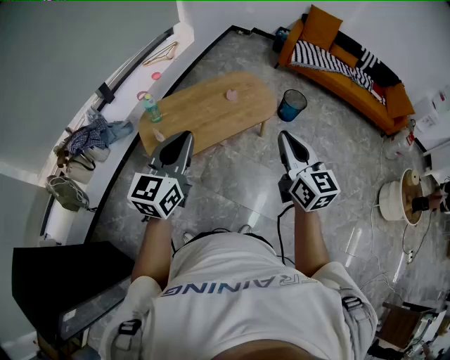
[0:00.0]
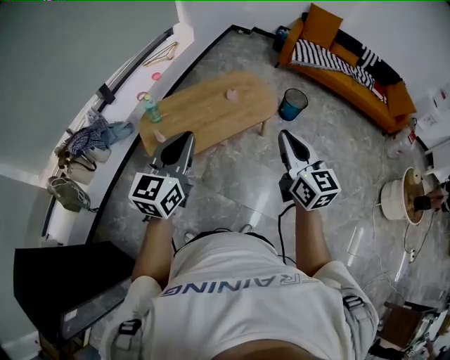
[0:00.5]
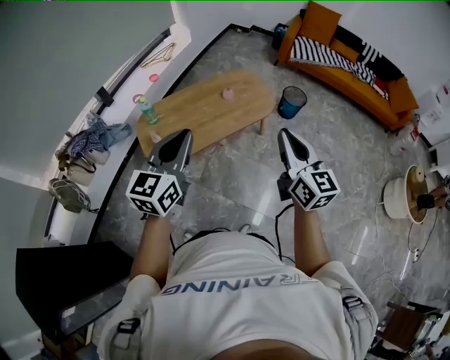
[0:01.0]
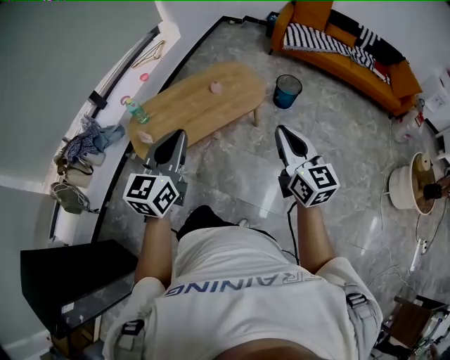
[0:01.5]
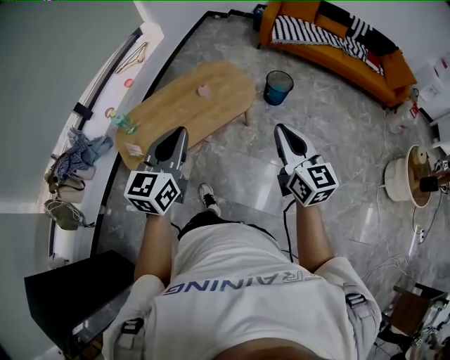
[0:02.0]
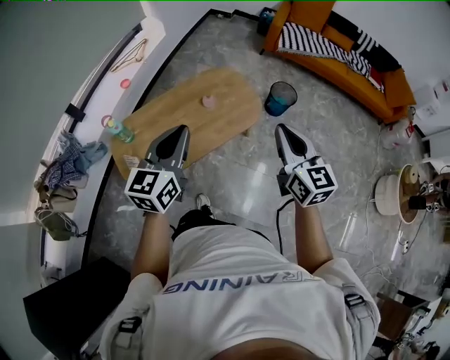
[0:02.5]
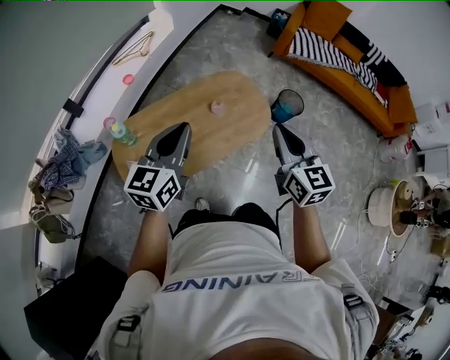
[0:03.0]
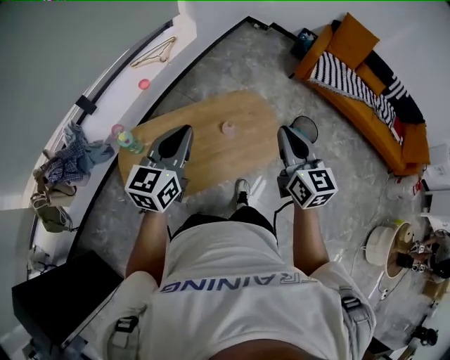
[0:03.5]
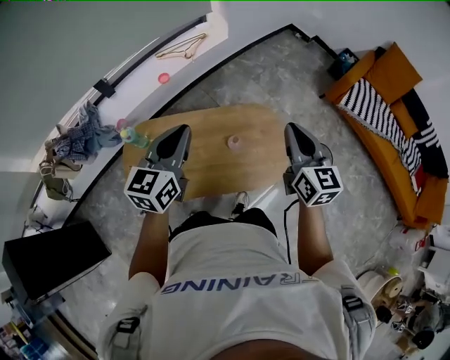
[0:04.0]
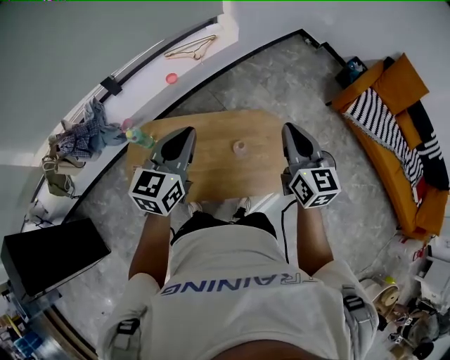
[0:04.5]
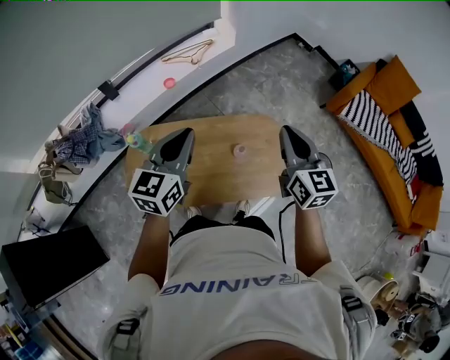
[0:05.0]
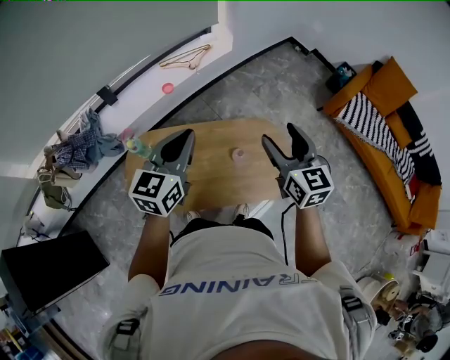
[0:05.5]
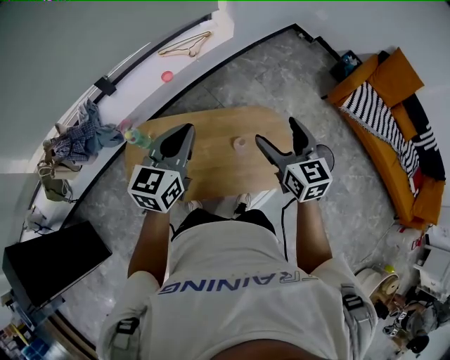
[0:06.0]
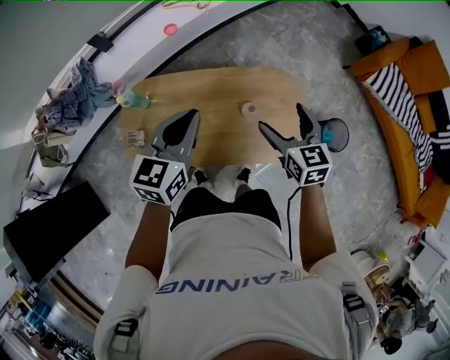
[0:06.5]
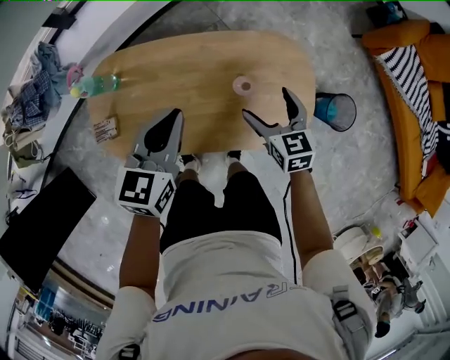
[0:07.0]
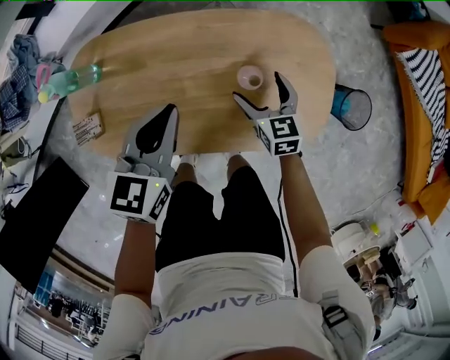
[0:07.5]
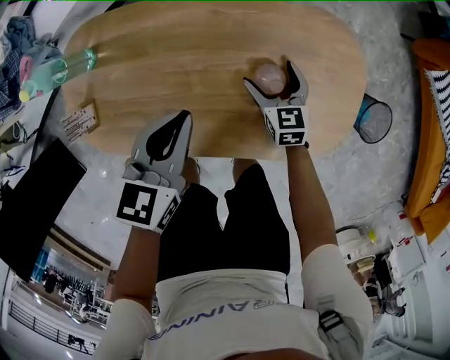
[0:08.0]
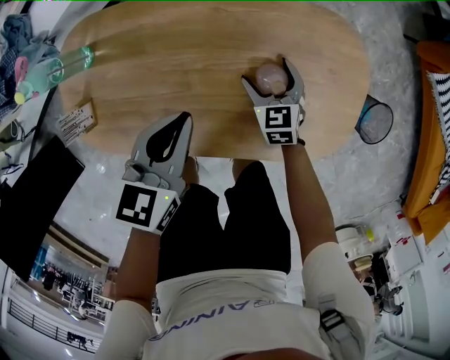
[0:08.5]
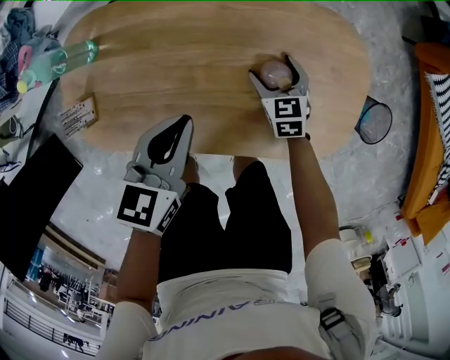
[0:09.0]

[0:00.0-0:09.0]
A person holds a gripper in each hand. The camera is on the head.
0:00.0 to 0:02.0: The two grippers go approximately 20 cm to the right and forward.
0:02.0 to 0:04.5: The pair of grippers is taken roughly 50 cm. The right gripper rotates about 30 degrees. Meanwhile the left gripper swivels approximately 30 degrees.
0:04.5 to 0:07.0: Both grippers travel together downward, about 30 cm. The right gripper changes its angle by approximately 30 degrees, and opens its fingers.
0:07.0 to 0:09.0: The grippers both shift downward by some 20 cm.

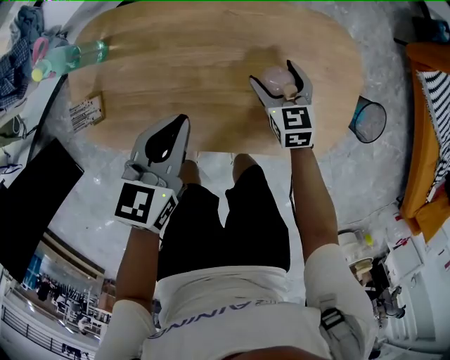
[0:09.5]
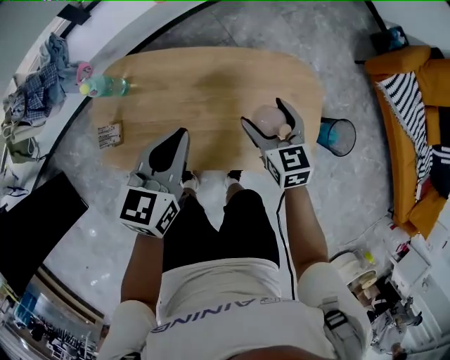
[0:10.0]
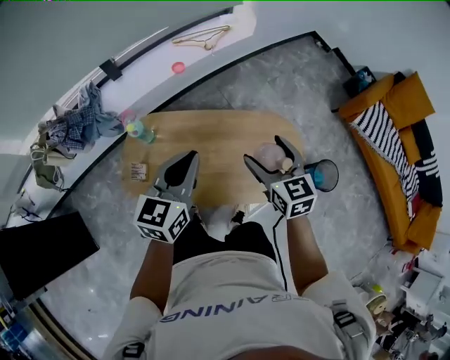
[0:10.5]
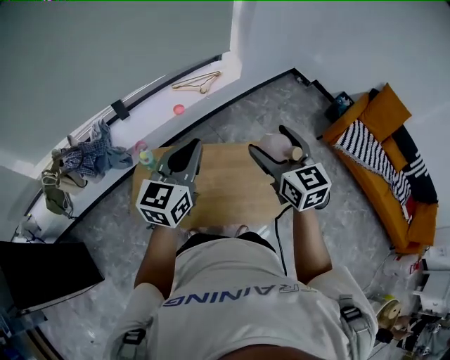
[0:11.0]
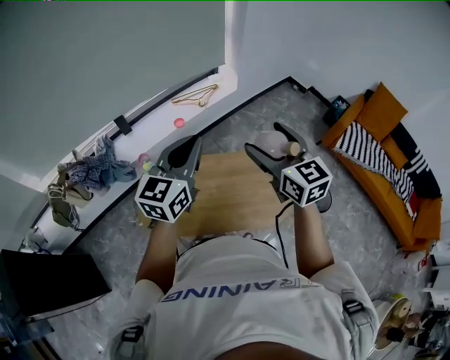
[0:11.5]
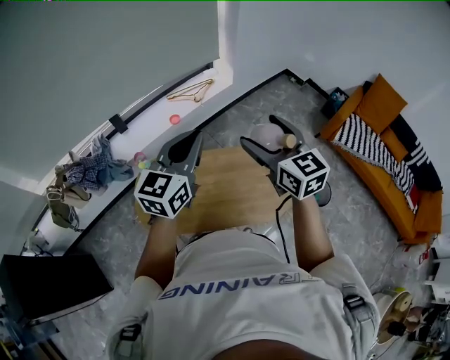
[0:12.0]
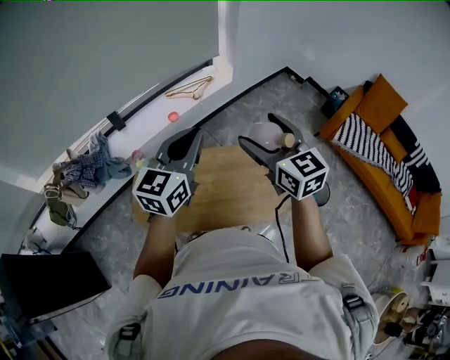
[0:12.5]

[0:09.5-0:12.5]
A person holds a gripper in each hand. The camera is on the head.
0:09.5 to 0:11.0: Both grippers move upward, about 50 cm. The right gripper angles its fingers upward, by approximately 30 degrees. Meanwhile the left gripper angles its fingers upward, by approximately 40 degrees.
0:11.0 to 0:12.5: The left gripper moves roughly 5 cm.

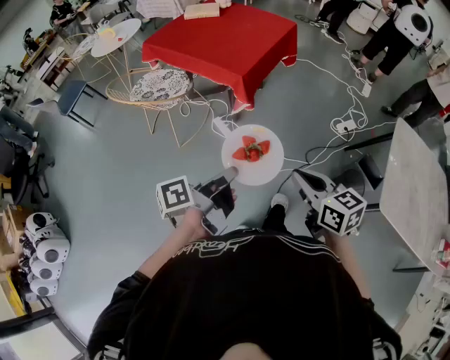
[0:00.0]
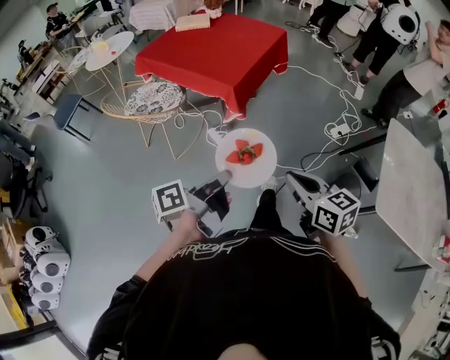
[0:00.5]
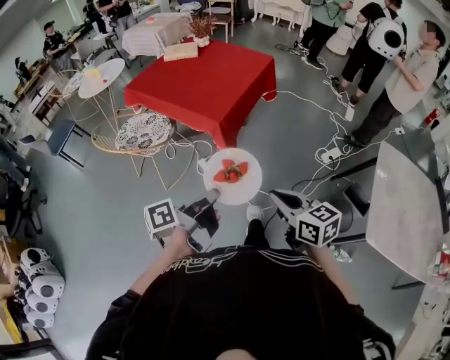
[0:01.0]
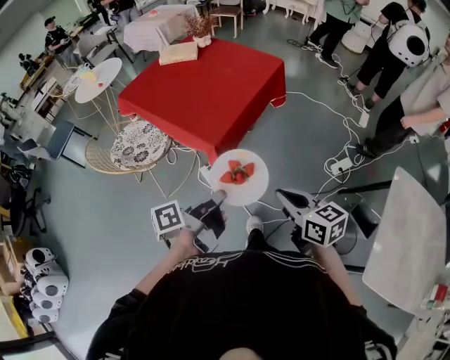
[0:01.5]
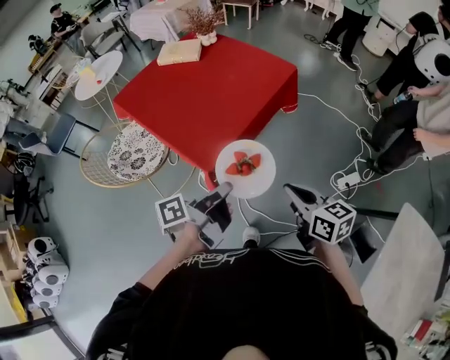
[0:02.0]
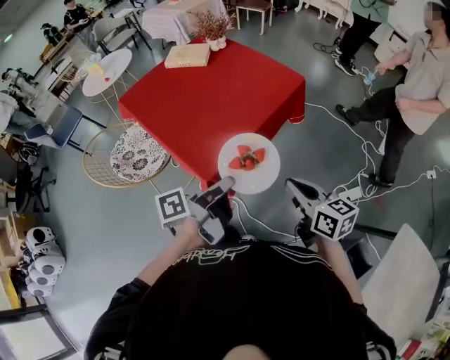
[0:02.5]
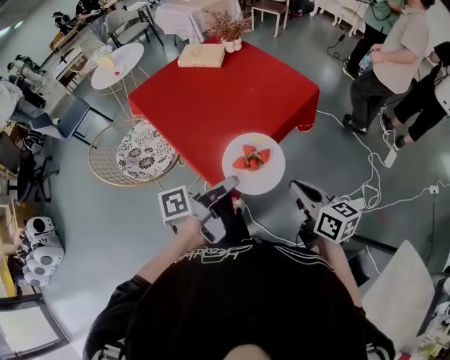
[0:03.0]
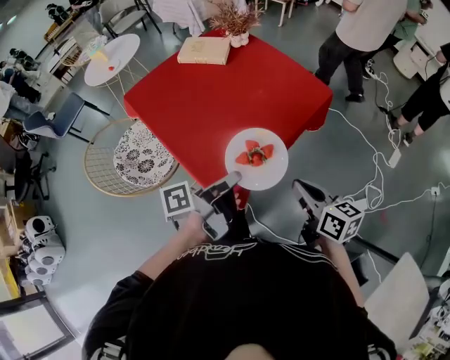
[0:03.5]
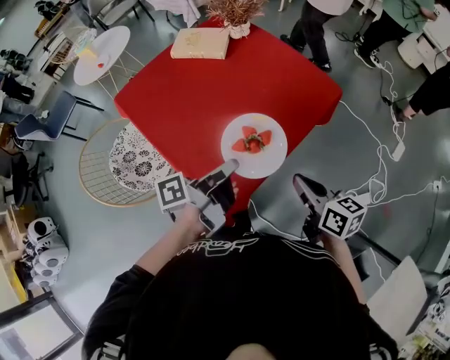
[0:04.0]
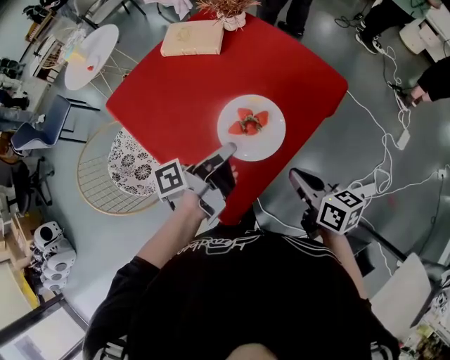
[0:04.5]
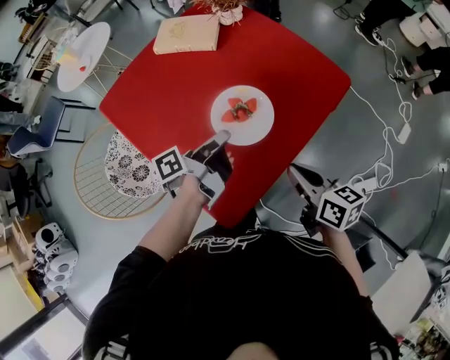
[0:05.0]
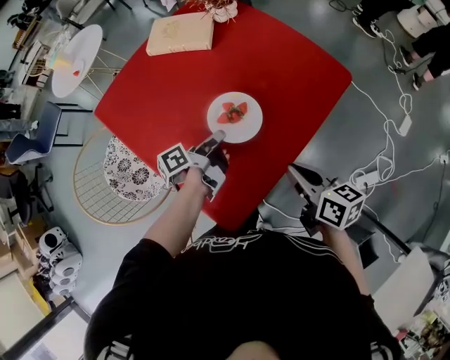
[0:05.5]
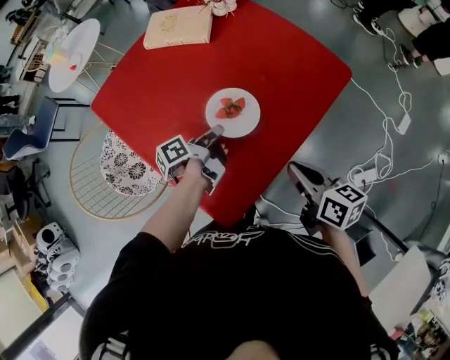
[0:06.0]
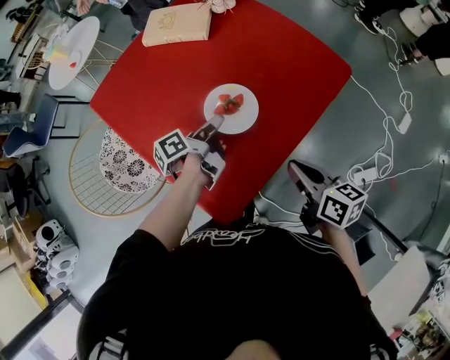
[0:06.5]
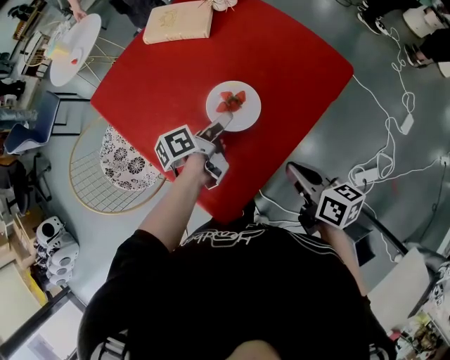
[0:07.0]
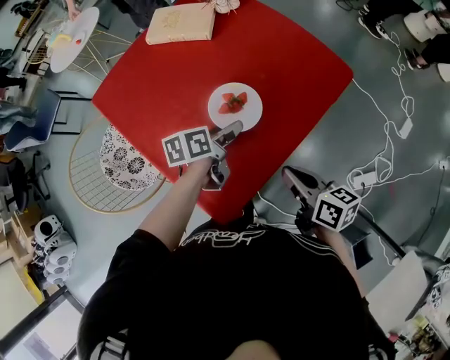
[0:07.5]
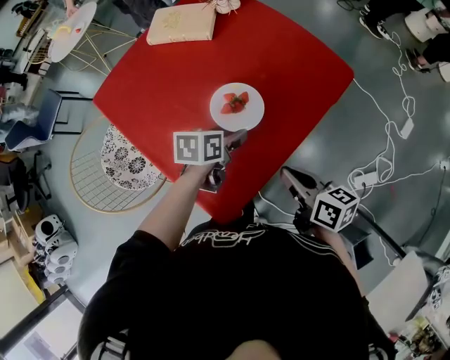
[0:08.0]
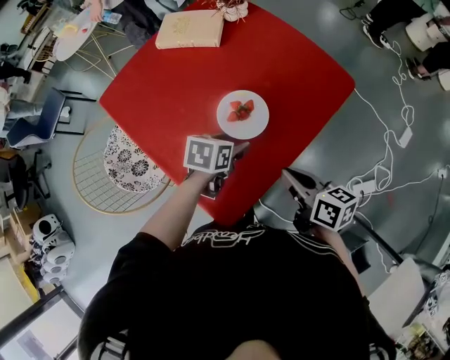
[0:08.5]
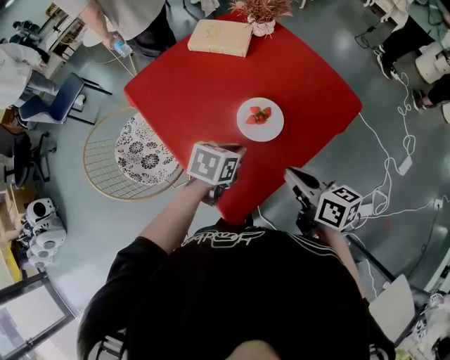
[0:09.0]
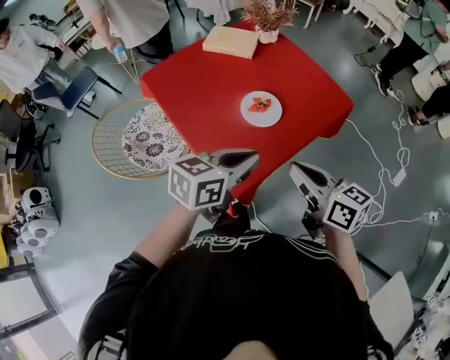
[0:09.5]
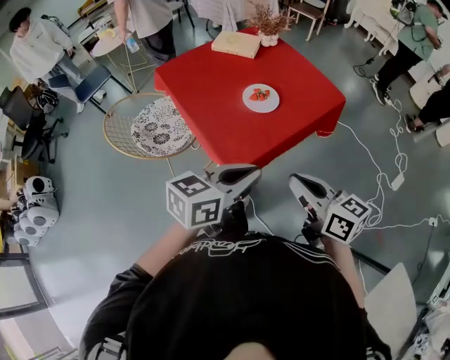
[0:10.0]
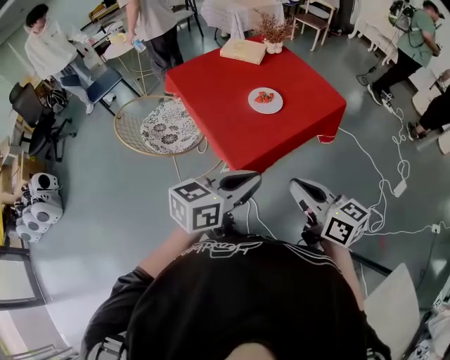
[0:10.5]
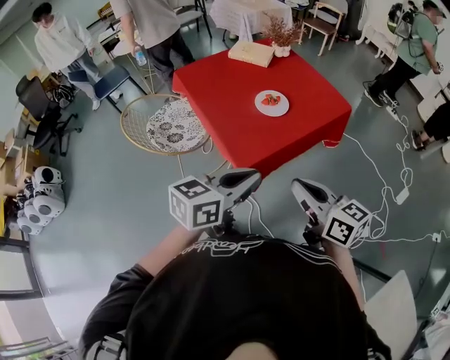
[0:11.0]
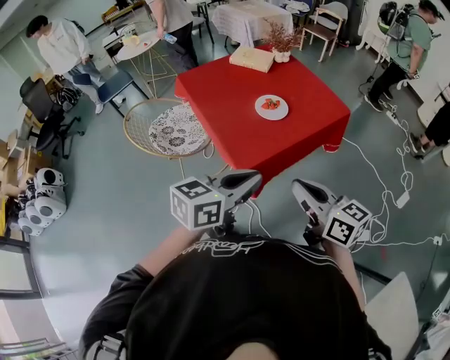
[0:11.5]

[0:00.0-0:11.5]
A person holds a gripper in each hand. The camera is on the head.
0:00.0 to 0:02.0: The pair of grippers is taken forward, about 40 cm.
0:02.0 to 0:04.0: Both grippers travel together forward, roughly 25 cm.
0:04.0 to 0:06.0: The left gripper heads downward and forward, covering about 20 cm, and changes its angle by approximately 20 degrees; the right gripper moves forward, approximately 5 cm.
0:06.0 to 0:07.5: The left gripper changes its angle by roughly 40 degrees, and opens its fingers.
0:07.5 to 0:09.5: The left gripper travels upward and backward by some 25 cm, changes its angle by about 40 degrees, and closes up. Meanwhile the right gripper travels upward and backward by about 15 cm, and rotates approximately 20 degrees.
0:09.5 to 0:11.5: The two grippers go approximately 20 cm backward.

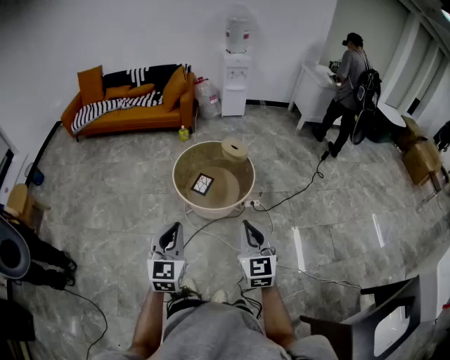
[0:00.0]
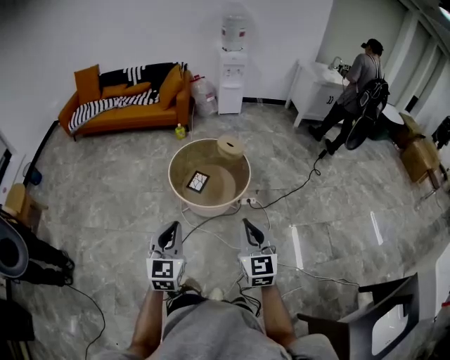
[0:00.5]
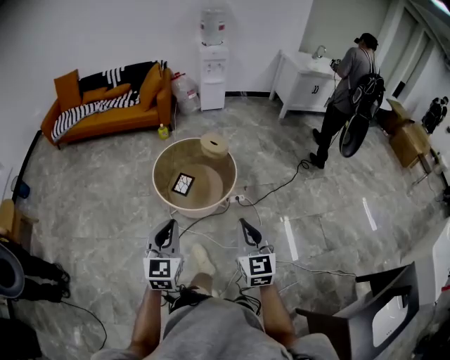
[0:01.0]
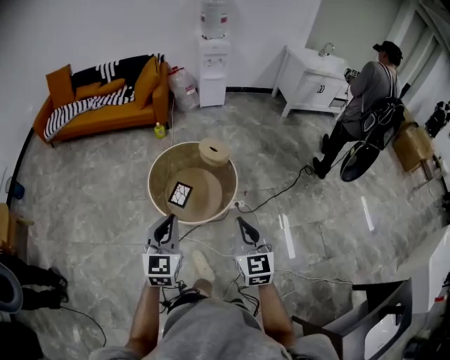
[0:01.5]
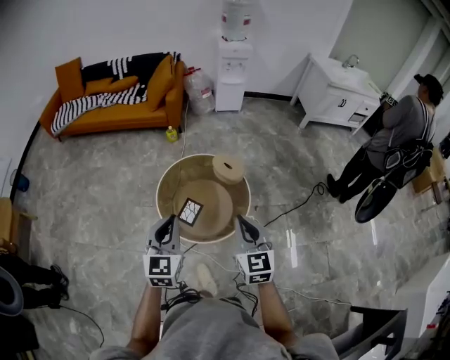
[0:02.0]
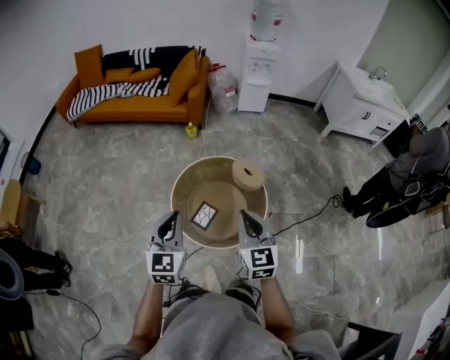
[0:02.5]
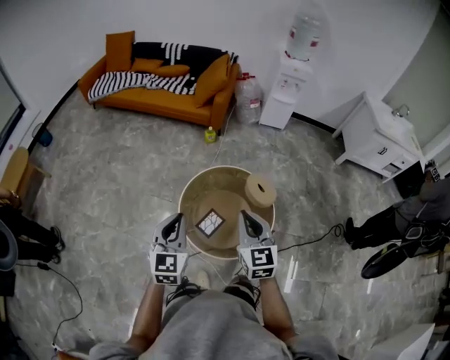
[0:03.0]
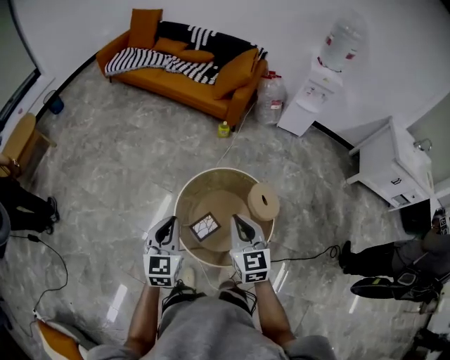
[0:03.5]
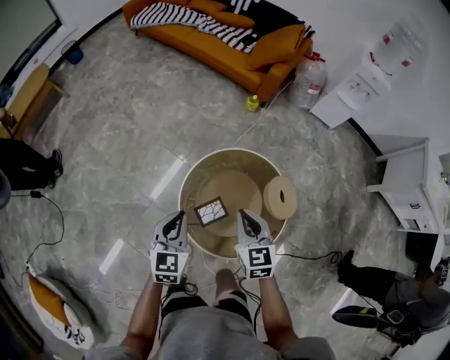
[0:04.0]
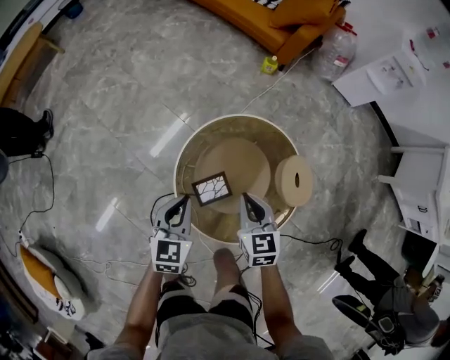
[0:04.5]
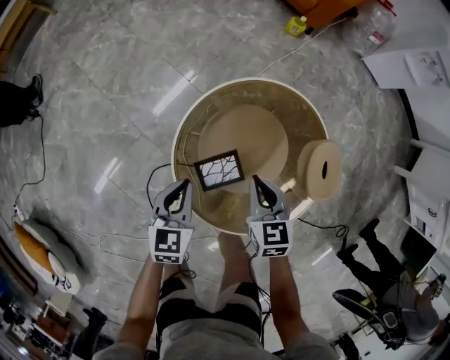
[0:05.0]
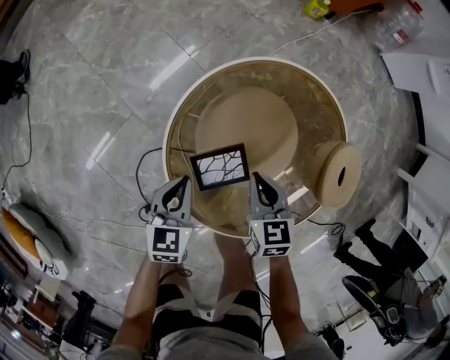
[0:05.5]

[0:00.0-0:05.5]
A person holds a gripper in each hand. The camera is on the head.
0:00.0 to 0:02.0: Both grippers move forward, approximately 35 cm.
0:02.0 to 0:03.5: The left gripper shifts by about 20 cm, and changes its angle by some 30 degrees; the right gripper ends up roughly 25 cm from where it was, and rotates roughly 30 degrees.
0:03.5 to 0:05.5: The two grippers go about 50 cm downward. The left gripper swivels roughly 30 degrees, while the right gripper changes its angle by approximately 40 degrees.
